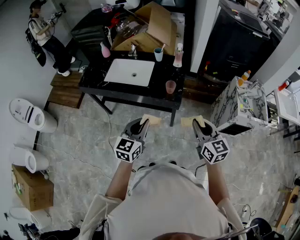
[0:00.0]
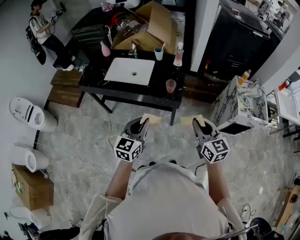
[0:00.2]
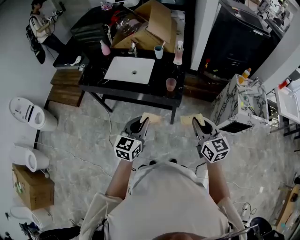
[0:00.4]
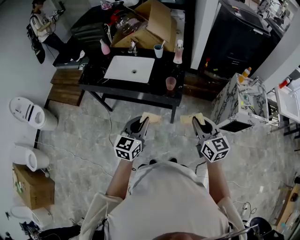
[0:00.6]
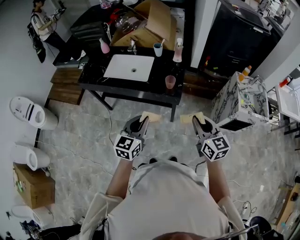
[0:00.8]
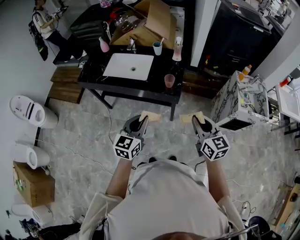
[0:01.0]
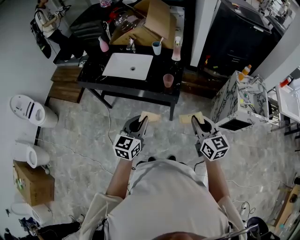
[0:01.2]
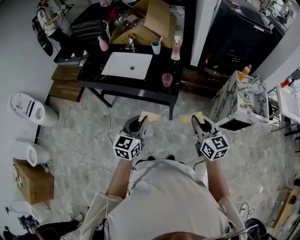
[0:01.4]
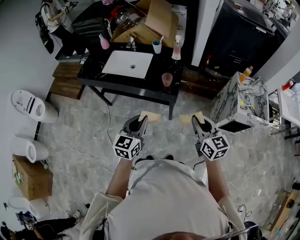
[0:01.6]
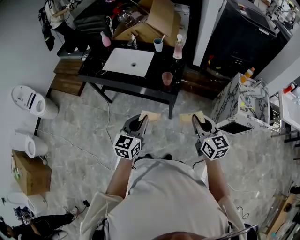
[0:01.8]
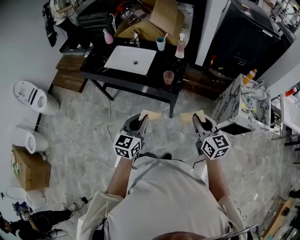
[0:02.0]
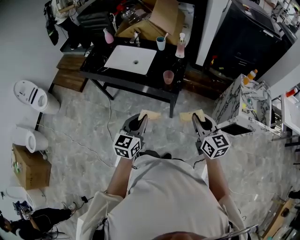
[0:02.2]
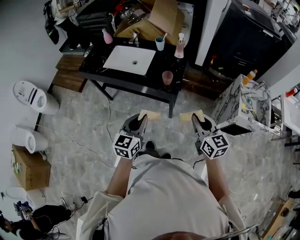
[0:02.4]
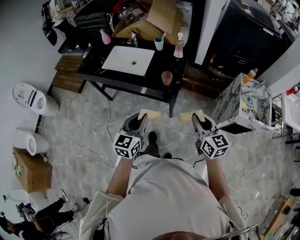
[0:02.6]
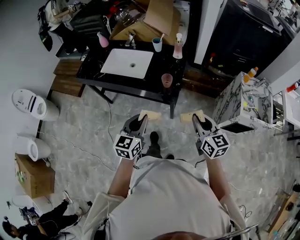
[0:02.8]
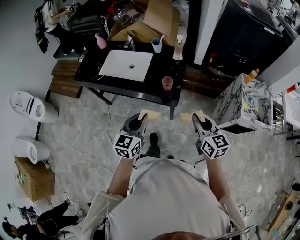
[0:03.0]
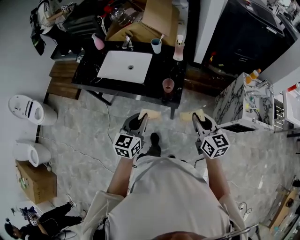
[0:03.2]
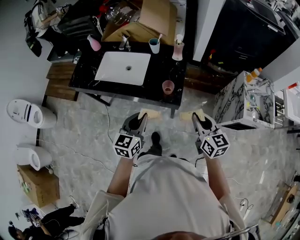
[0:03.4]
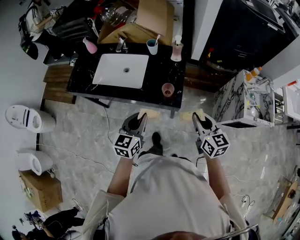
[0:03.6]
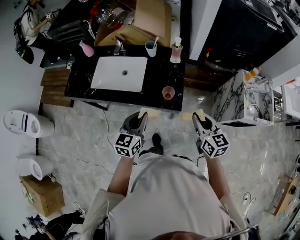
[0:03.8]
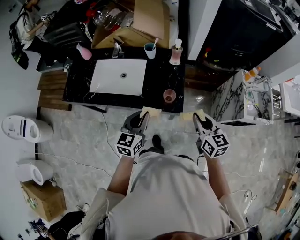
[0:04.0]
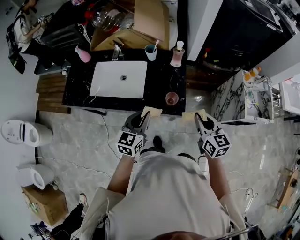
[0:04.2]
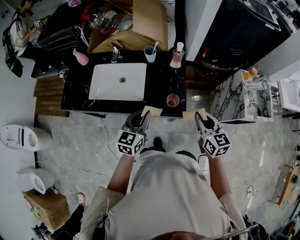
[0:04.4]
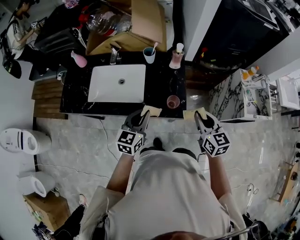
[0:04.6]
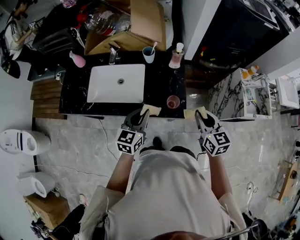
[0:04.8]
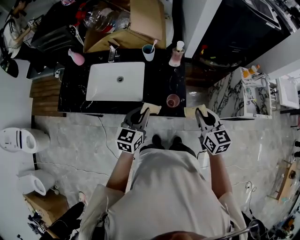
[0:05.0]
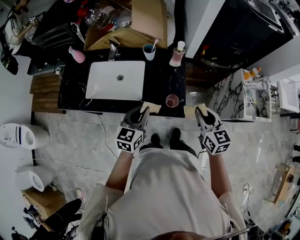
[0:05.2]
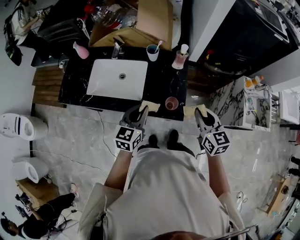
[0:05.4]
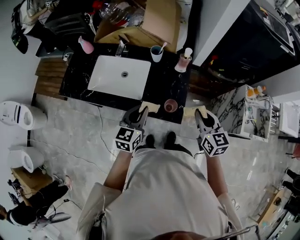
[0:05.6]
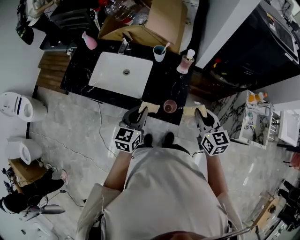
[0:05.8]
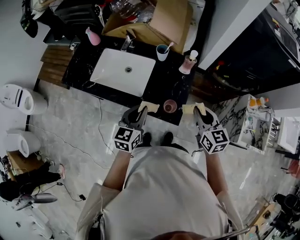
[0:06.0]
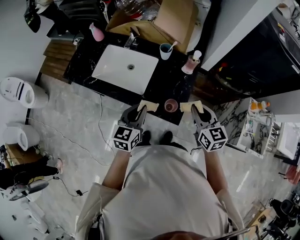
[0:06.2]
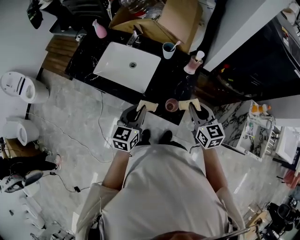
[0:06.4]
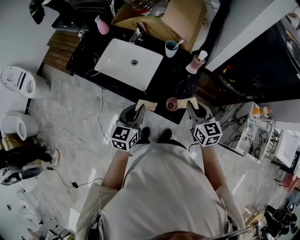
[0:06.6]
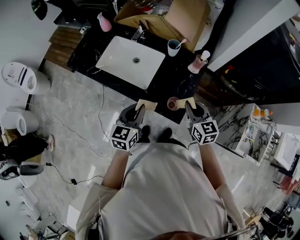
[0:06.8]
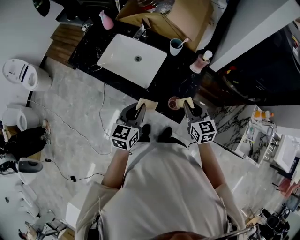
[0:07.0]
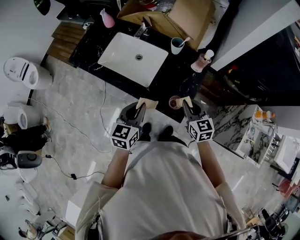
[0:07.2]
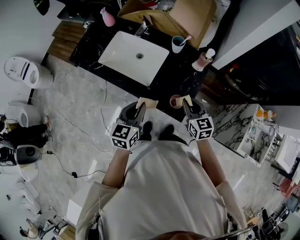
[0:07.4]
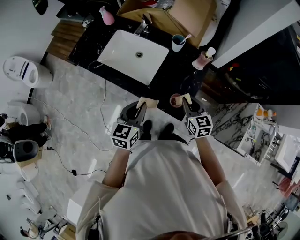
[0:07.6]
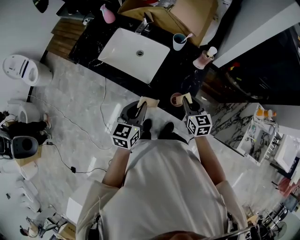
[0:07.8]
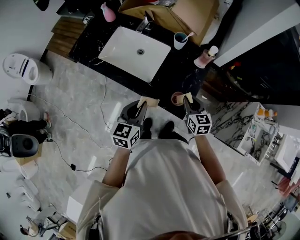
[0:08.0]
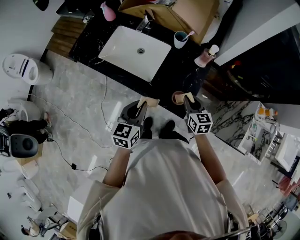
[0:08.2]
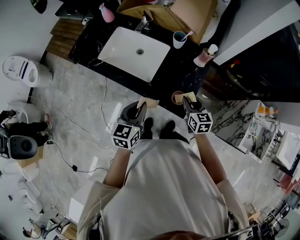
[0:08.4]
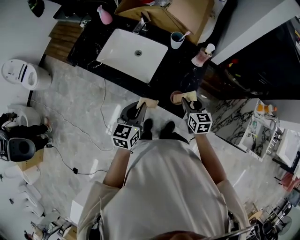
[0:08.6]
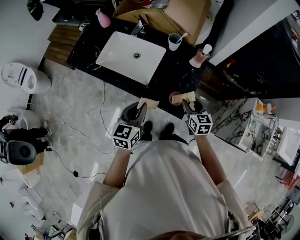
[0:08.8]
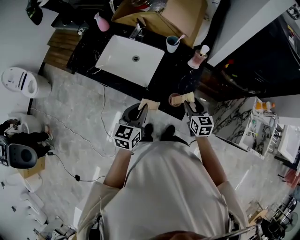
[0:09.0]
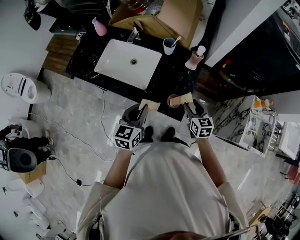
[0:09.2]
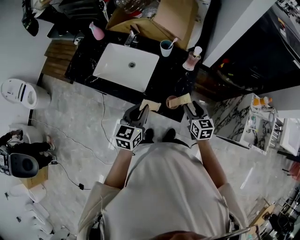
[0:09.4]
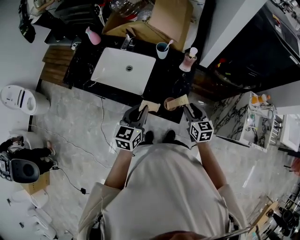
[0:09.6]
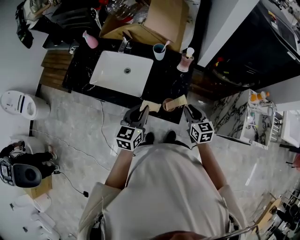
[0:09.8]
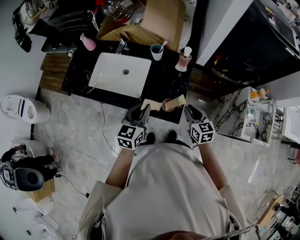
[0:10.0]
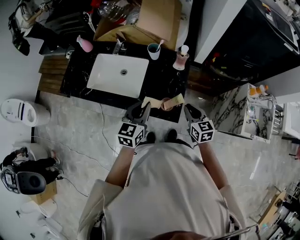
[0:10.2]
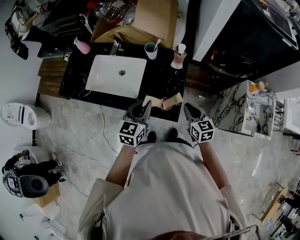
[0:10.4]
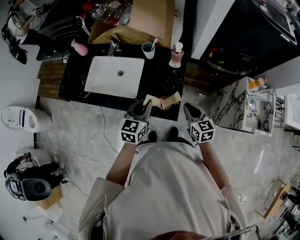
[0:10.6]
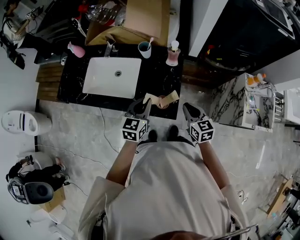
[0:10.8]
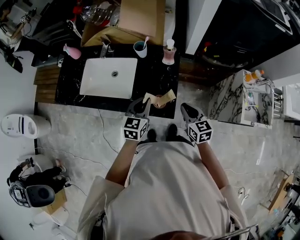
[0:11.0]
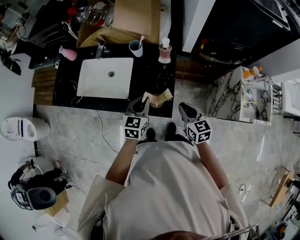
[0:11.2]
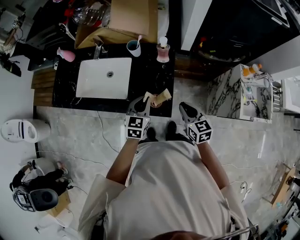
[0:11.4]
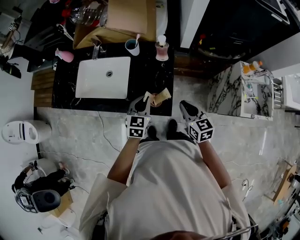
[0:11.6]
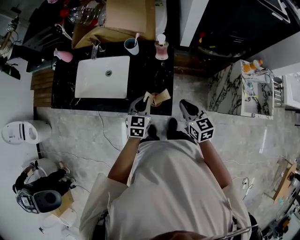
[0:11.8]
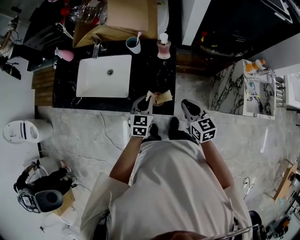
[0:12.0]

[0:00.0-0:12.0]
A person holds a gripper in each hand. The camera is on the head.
0:00.0 to 0:01.6: The right gripper changes place by approximately 5 cm.
0:01.6 to 0:03.0: Both grippers travel together forward, approximately 10 cm.
0:03.0 to 0:04.4: The right gripper shifts approximately 20 cm forward and to the left, while the left gripper is displaced forward by approximately 20 cm.
0:04.4 to 0:06.0: The right gripper goes some 10 cm forward.
0:06.0 to 0:07.6: The right gripper moves downward and to the left, approximately 15 cm.
0:07.6 to 0:09.0: The right gripper ends up approximately 5 cm from where it was, and opens its fingers.
0:09.0 to 0:10.4: The right gripper changes place by some 5 cm, and closes up; the left gripper is displaced to the right and forward by about 10 cm.
0:10.4 to 0:12.0: The left gripper goes some 10 cm downward.

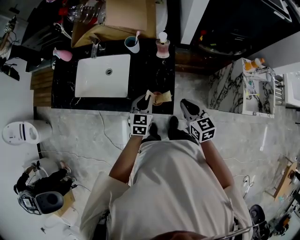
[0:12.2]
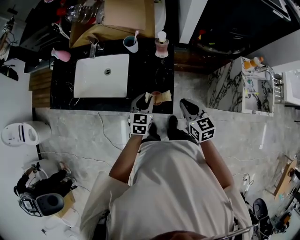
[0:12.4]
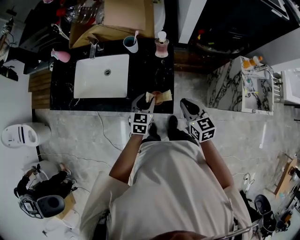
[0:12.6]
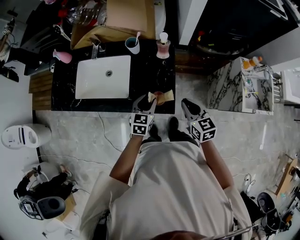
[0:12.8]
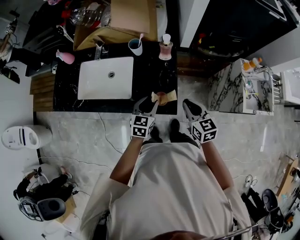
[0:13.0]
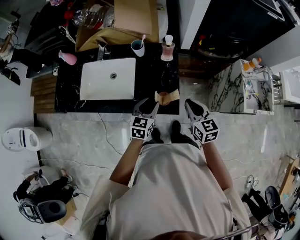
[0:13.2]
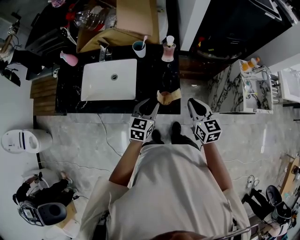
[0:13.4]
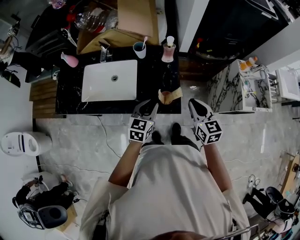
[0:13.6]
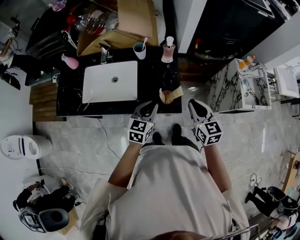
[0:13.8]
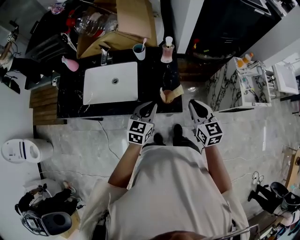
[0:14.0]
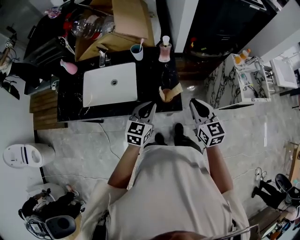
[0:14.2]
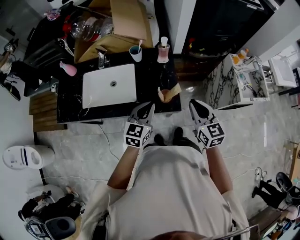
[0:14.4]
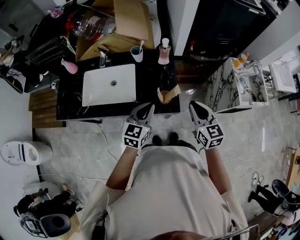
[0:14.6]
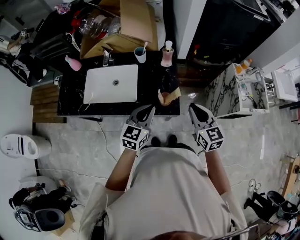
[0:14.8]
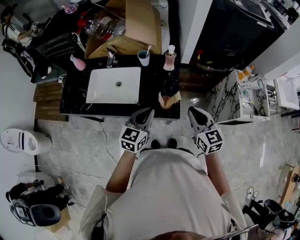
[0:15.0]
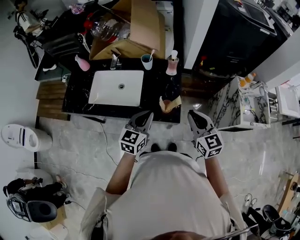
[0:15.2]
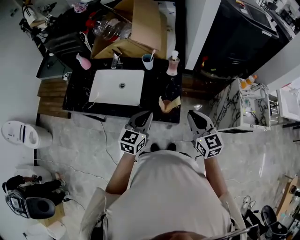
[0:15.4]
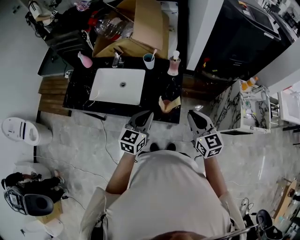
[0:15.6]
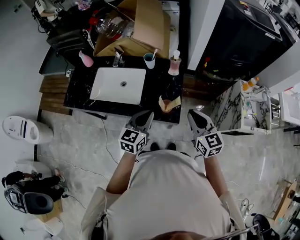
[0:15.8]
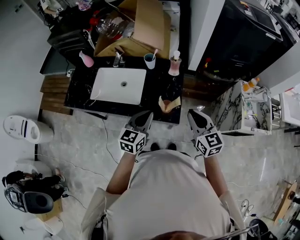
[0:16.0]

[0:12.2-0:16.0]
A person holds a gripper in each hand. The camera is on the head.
0:12.2 to 0:13.4: The right gripper moves about 5 cm. Meanwhile the left gripper is displaced upward by some 5 cm, and opens its fingers.
0:13.4 to 0:14.8: Both grippers move upward and backward, about 10 cm. The left gripper closes.
0:14.8 to 0:16.0: There are only small adjustments of the grippers.

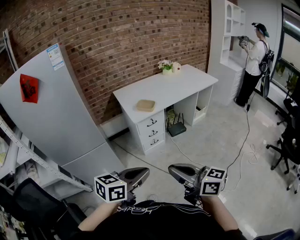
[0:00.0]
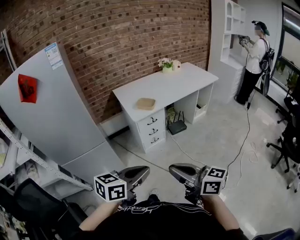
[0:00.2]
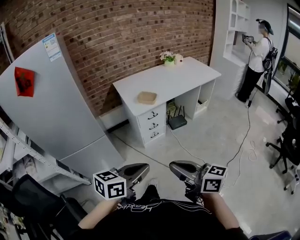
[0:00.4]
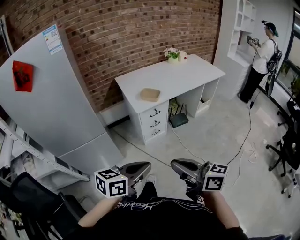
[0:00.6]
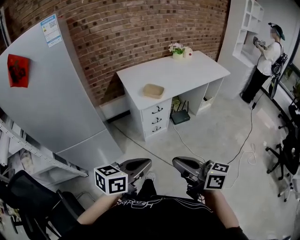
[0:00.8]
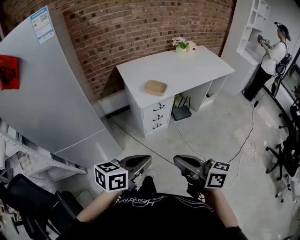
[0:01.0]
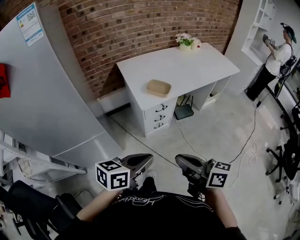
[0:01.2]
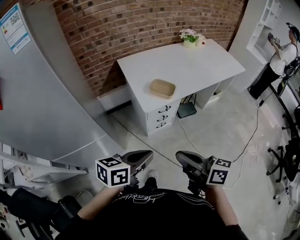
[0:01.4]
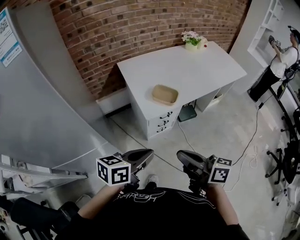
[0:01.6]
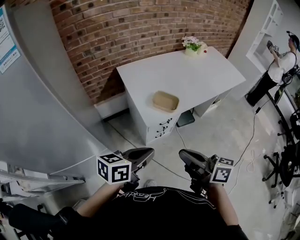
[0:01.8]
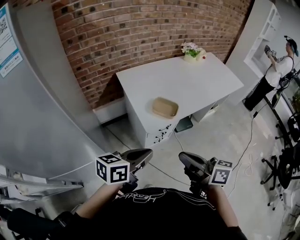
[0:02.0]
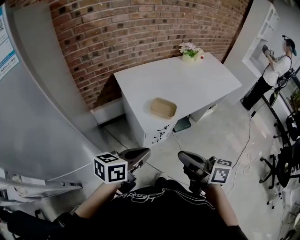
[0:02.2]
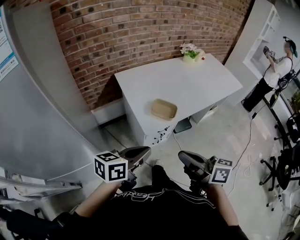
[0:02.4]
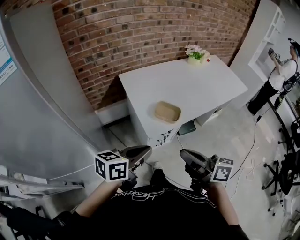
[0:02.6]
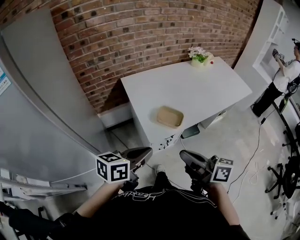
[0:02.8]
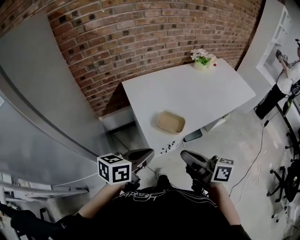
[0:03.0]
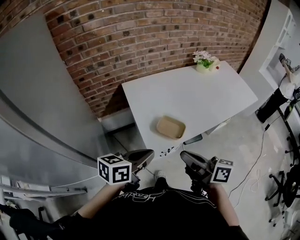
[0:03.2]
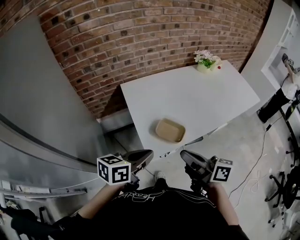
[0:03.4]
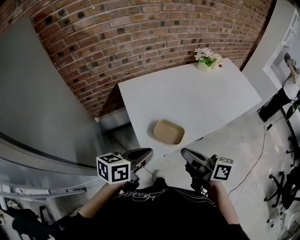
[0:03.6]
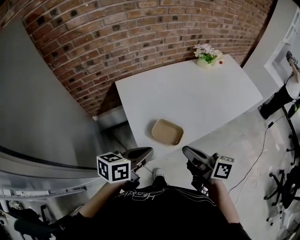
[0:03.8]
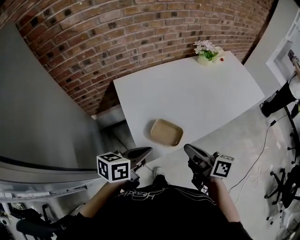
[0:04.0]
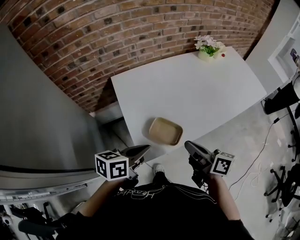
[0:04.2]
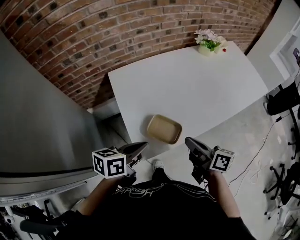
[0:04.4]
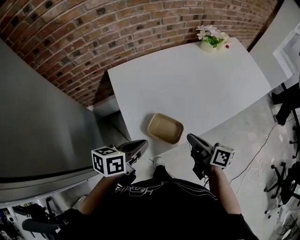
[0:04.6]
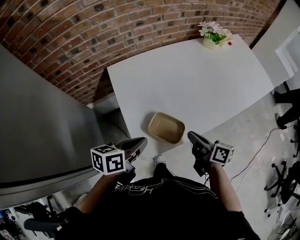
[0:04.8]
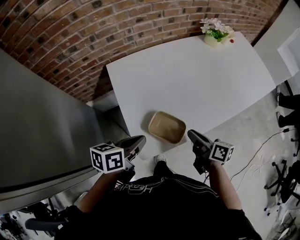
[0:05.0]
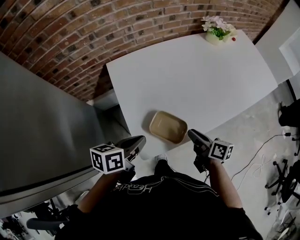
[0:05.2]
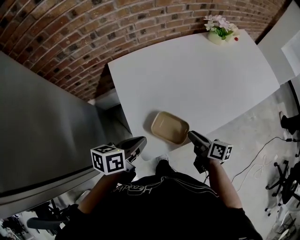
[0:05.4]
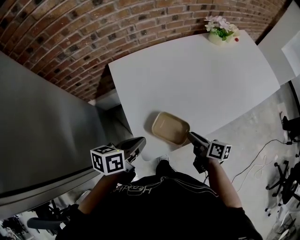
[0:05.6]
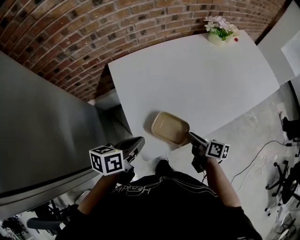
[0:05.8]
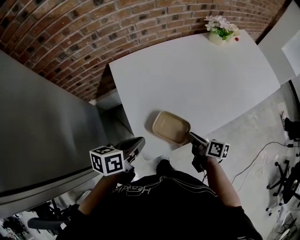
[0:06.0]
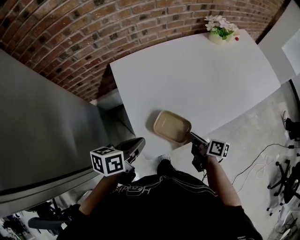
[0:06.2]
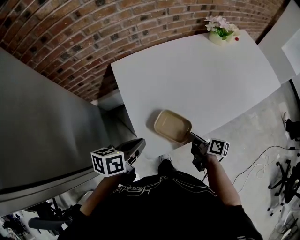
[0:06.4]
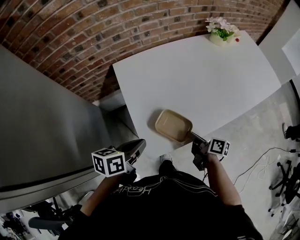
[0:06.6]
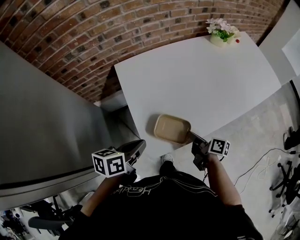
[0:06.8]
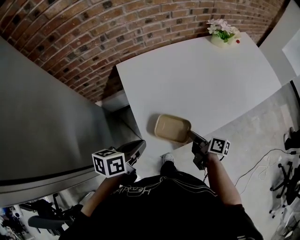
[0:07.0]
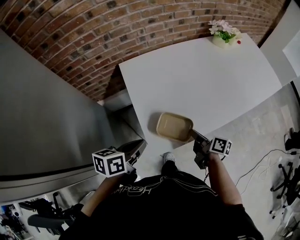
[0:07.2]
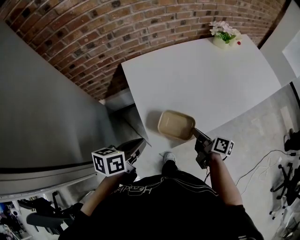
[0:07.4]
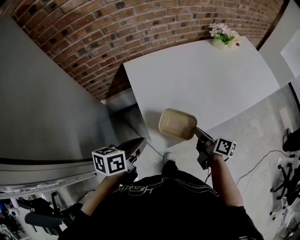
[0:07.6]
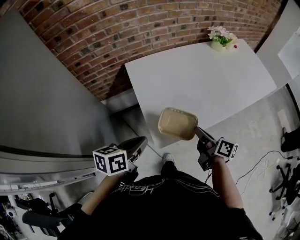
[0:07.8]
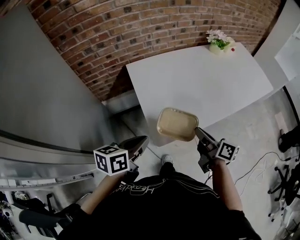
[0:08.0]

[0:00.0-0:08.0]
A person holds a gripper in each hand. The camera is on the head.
0:00.0 to 0:01.6: The grippers both shift forward by approximately 30 cm.
0:01.6 to 0:03.2: Both grippers move forward, about 20 cm.
0:03.2 to 0:04.8: The right gripper travels forward, downward and to the right by about 25 cm, and swivels some 20 degrees; the left gripper travels forward and downward by roughly 15 cm.
0:04.8 to 0:06.4: The right gripper travels downward by some 10 cm.
0:06.4 to 0:08.0: The left gripper is displaced backward and upward by roughly 10 cm. The right gripper goes approximately 15 cm upward, and turns by some 20 degrees.
